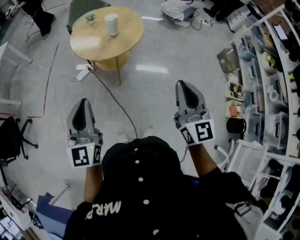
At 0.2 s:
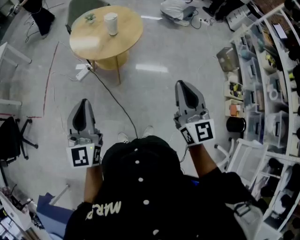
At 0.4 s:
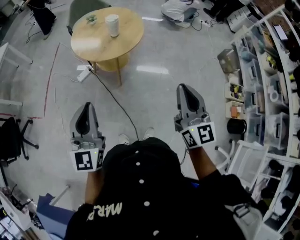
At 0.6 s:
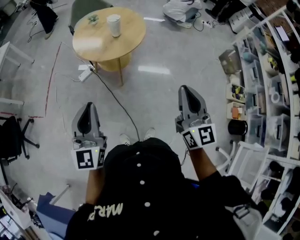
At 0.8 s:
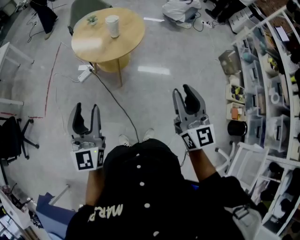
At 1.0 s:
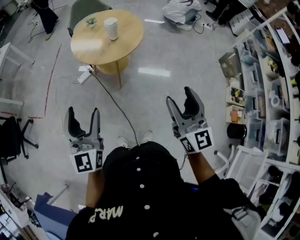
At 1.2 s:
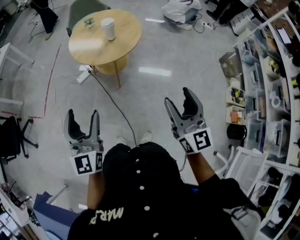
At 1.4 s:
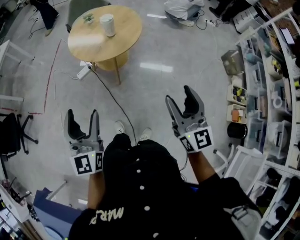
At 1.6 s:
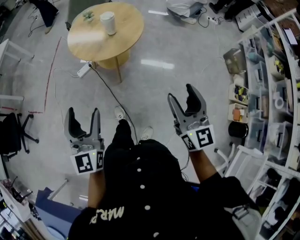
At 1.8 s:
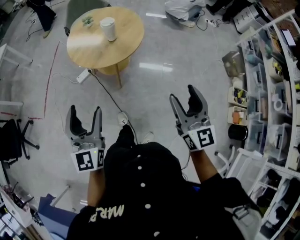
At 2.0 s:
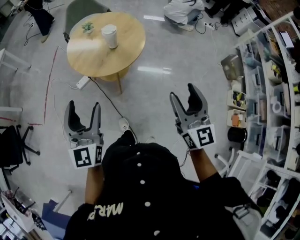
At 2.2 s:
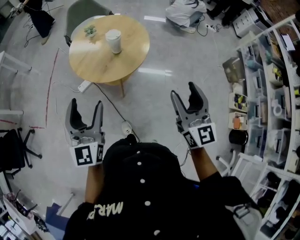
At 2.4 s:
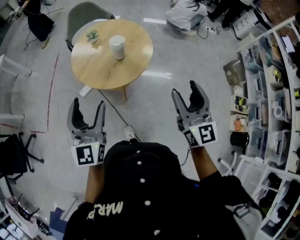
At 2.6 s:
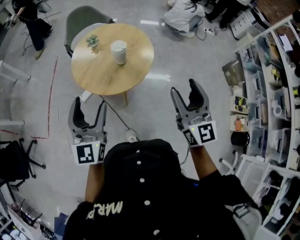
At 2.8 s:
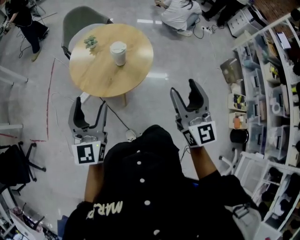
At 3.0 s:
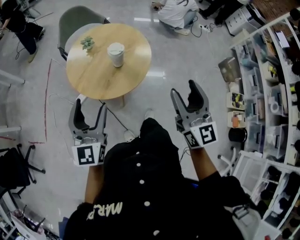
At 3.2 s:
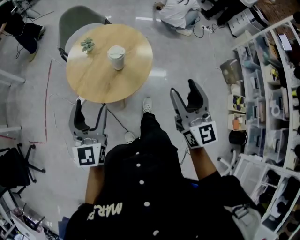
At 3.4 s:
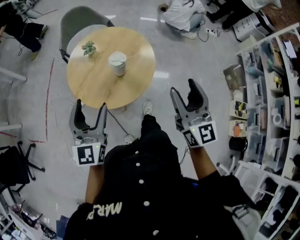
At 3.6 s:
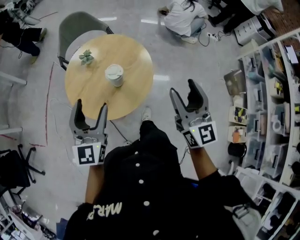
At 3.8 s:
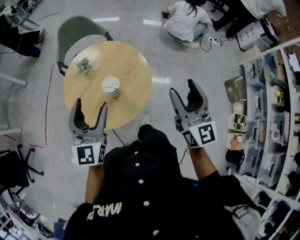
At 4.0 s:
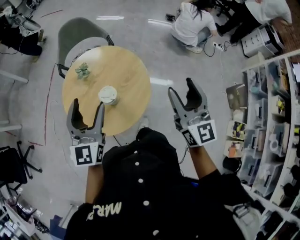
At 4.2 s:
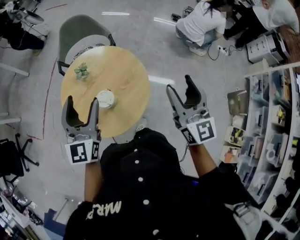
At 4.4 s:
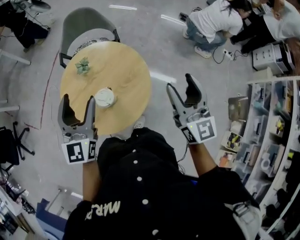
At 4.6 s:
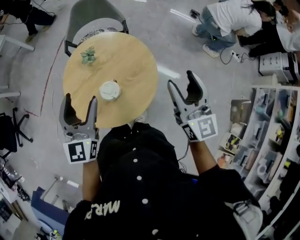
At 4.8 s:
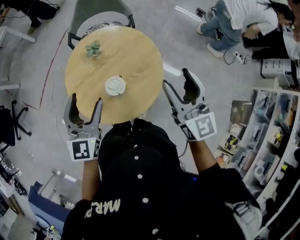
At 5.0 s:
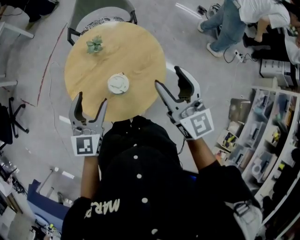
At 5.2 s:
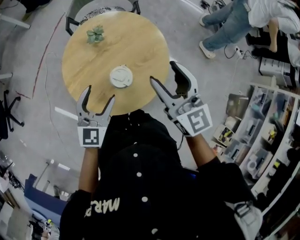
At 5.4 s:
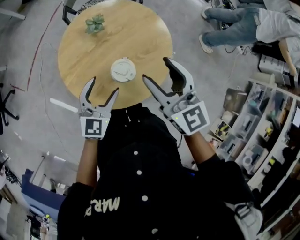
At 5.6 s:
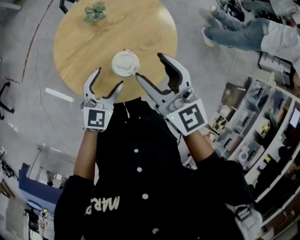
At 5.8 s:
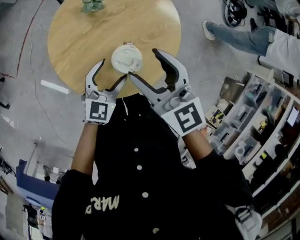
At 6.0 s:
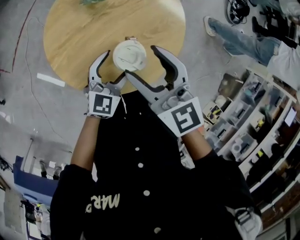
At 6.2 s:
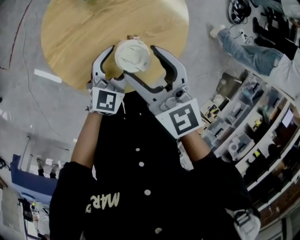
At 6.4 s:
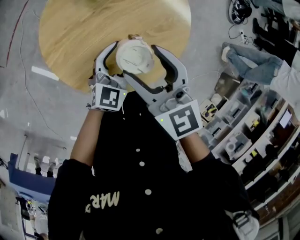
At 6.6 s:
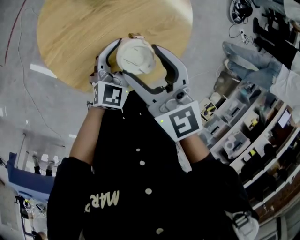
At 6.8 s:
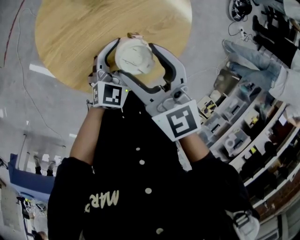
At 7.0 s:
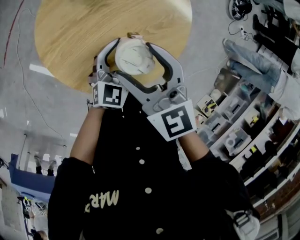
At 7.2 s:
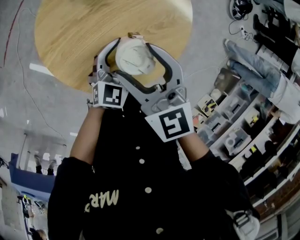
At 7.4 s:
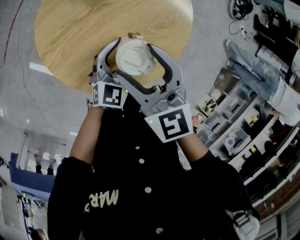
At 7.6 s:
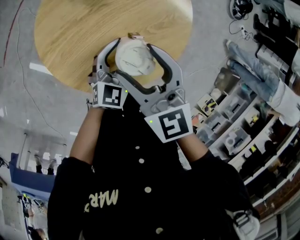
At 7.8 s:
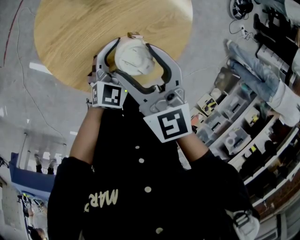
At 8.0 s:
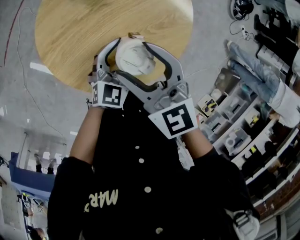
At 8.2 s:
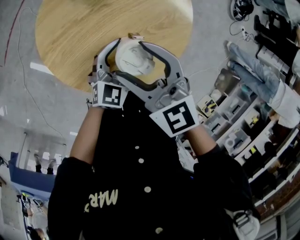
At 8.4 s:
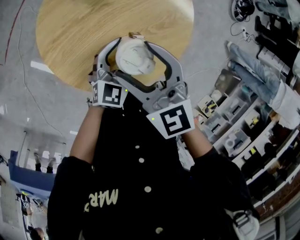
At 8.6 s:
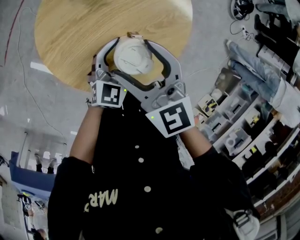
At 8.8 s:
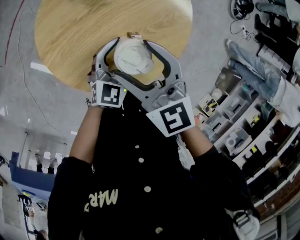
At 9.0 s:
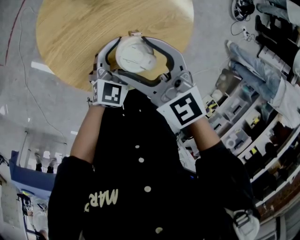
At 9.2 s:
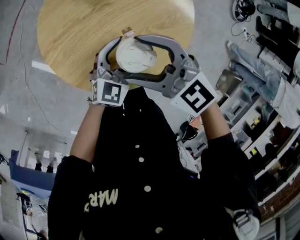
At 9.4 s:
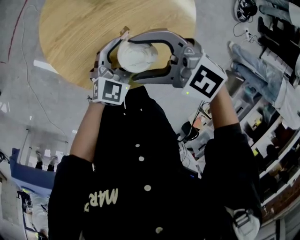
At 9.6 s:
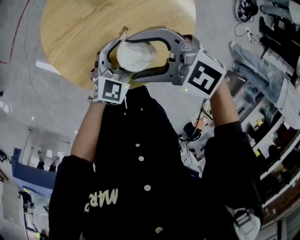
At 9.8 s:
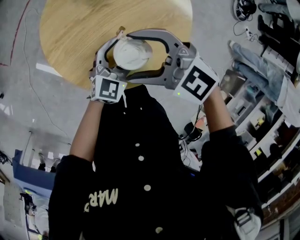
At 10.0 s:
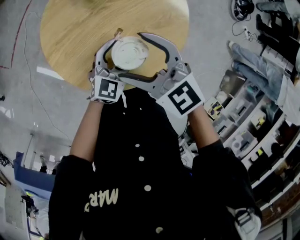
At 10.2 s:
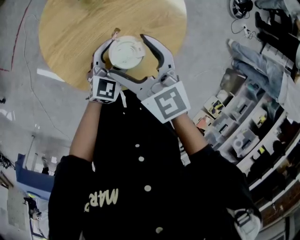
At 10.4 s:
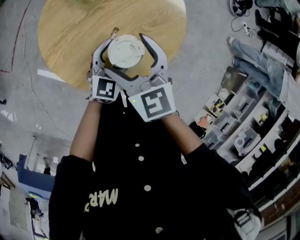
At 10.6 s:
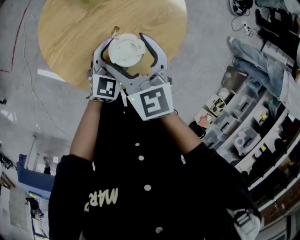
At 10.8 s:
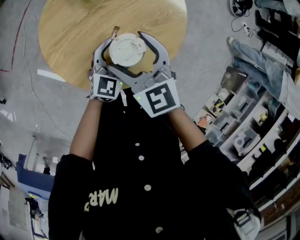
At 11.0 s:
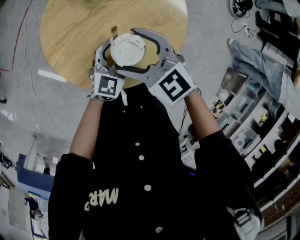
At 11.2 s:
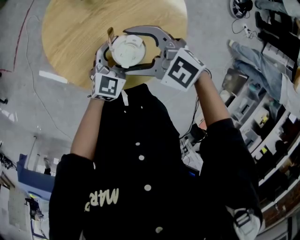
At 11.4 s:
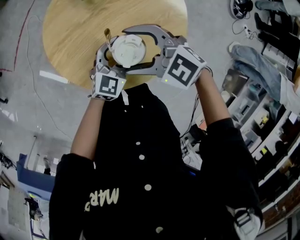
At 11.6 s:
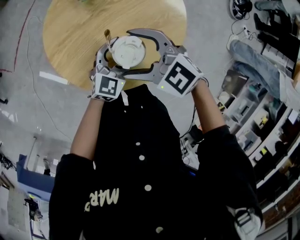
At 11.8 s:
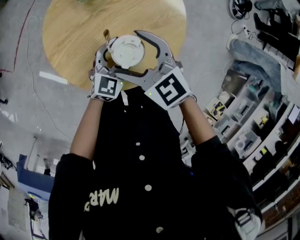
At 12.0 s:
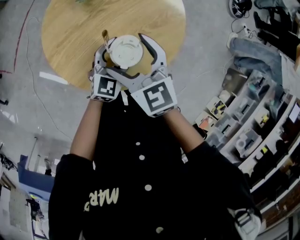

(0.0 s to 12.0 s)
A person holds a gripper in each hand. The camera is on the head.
0.0 s - 1.6 s: The right gripper travels to the right and forward by some 10 cm, and opens its fingers, while the left gripper moves to the right, roughly 5 cm, and opens.
1.6 s - 3.0 s: The left gripper travels forward by about 30 cm; the right gripper travels forward and to the left by approximately 30 cm.
3.0 s - 4.4 s: The grippers both shift forward by roughly 35 cm.
4.4 s - 6.0 s: The left gripper moves downward, about 35 cm, and rotates some 30 degrees. The right gripper goes approximately 35 cm to the left and downward, and turns by about 40 degrees.
6.0 s - 9.0 s: The grippers move only a little.
9.0 s - 10.4 s: The right gripper turns by about 30 degrees.

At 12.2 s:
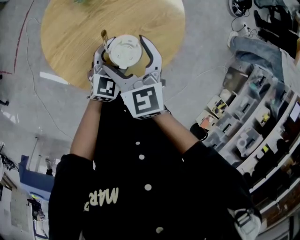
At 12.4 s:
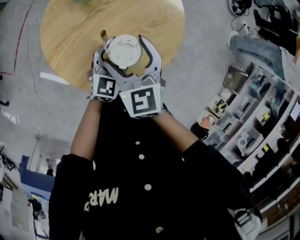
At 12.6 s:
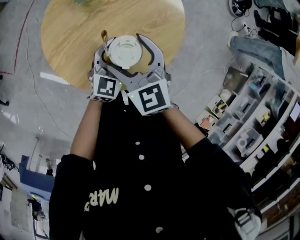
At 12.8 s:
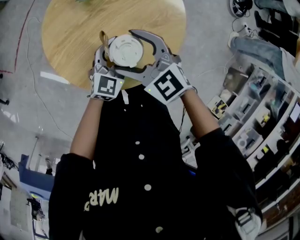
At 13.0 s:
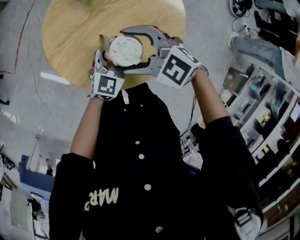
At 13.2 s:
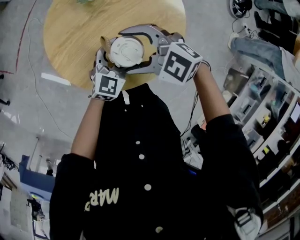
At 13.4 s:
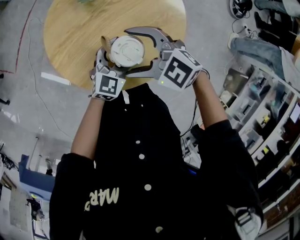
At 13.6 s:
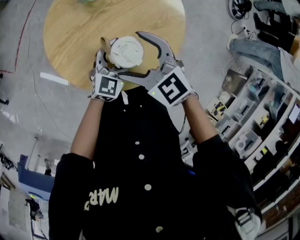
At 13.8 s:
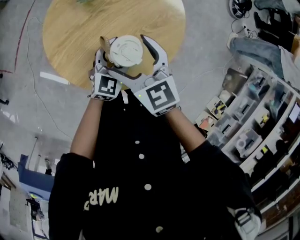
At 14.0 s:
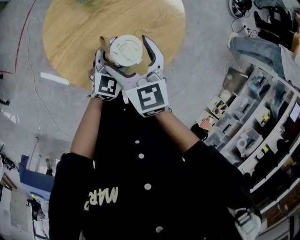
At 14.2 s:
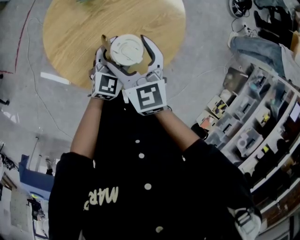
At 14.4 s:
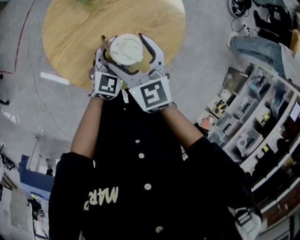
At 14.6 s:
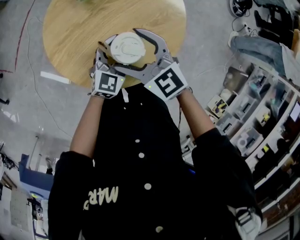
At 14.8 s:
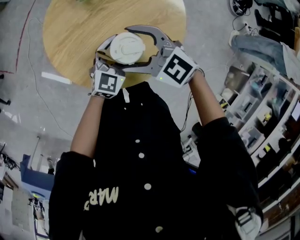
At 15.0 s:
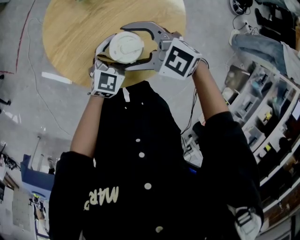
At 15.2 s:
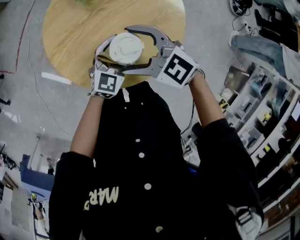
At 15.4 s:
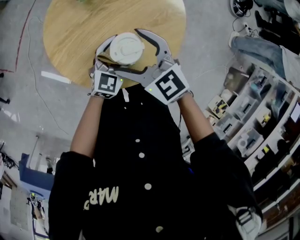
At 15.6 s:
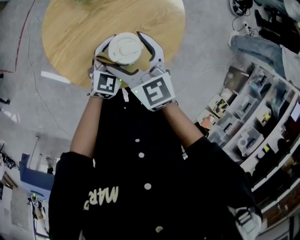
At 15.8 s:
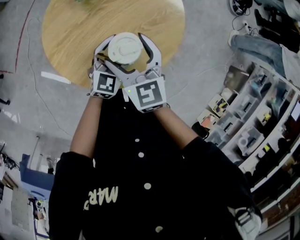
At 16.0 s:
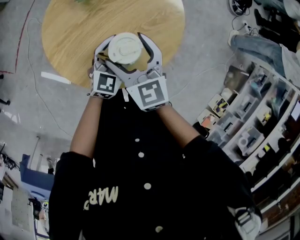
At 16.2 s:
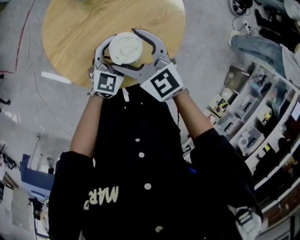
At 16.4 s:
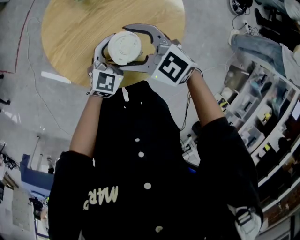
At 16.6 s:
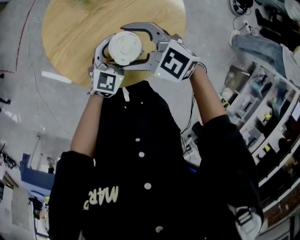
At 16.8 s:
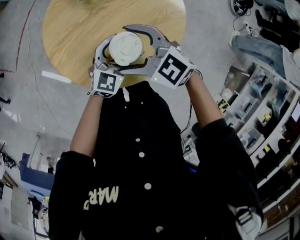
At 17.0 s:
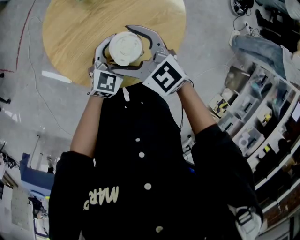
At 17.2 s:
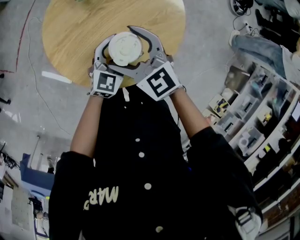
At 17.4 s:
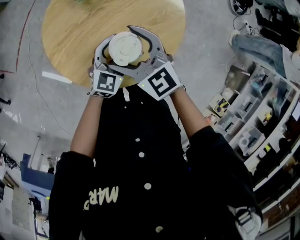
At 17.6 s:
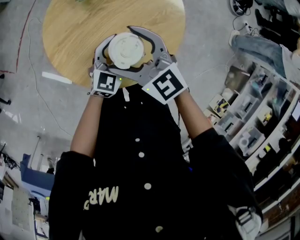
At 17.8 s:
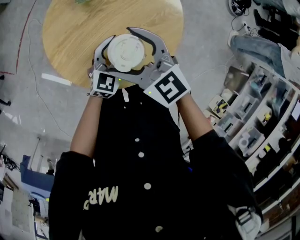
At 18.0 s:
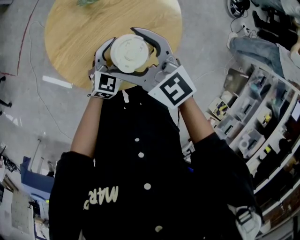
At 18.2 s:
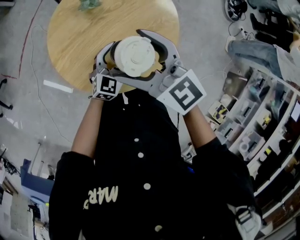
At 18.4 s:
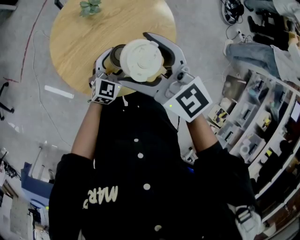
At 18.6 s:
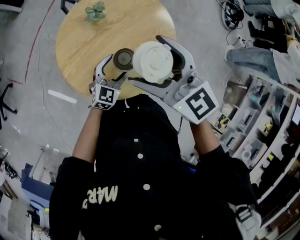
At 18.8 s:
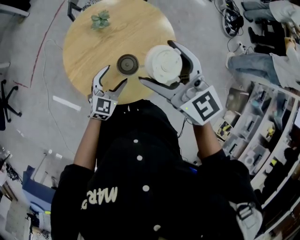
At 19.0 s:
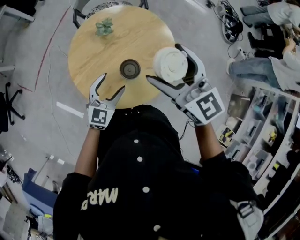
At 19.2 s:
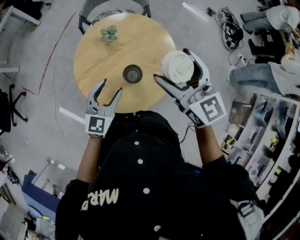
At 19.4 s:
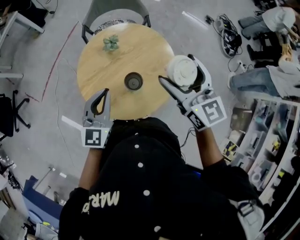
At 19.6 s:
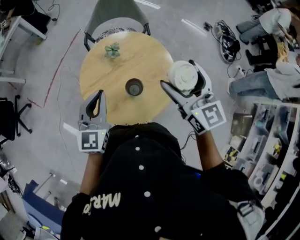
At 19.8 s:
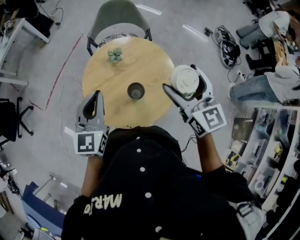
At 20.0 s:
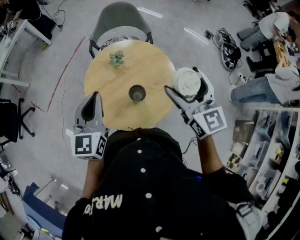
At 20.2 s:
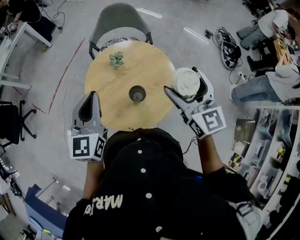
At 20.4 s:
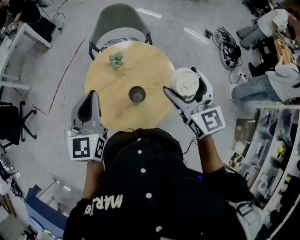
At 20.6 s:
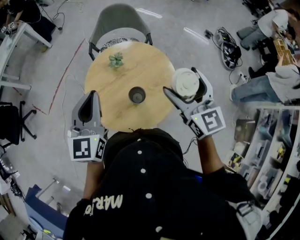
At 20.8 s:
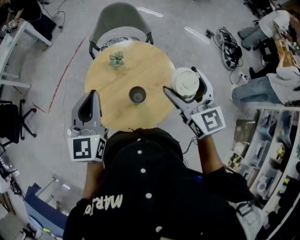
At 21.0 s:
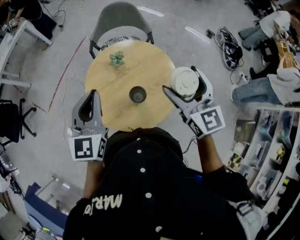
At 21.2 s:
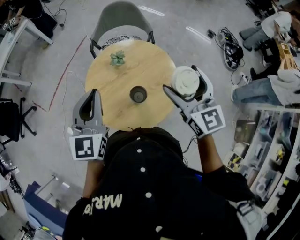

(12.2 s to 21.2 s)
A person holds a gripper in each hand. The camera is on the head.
13.8 s - 15.2 s: The right gripper rotates about 40 degrees.
16.6 s - 18.2 s: The right gripper moves upward, about 10 cm, and rotates about 30 degrees.
18.2 s - 19.8 s: The left gripper moves upward and to the left, some 35 cm, turns by roughly 30 degrees, and closes up. Meanwhile the right gripper is displaced upward and to the right by roughly 20 cm, and changes its angle by about 30 degrees.
19.8 s - 21.2 s: The grippers make only small movements.

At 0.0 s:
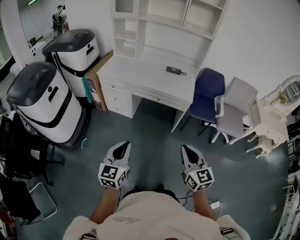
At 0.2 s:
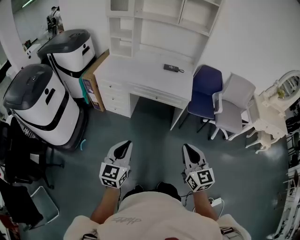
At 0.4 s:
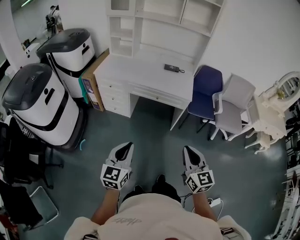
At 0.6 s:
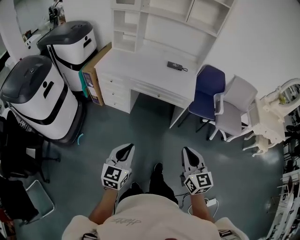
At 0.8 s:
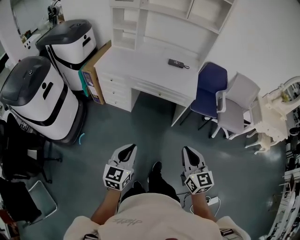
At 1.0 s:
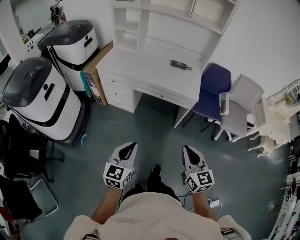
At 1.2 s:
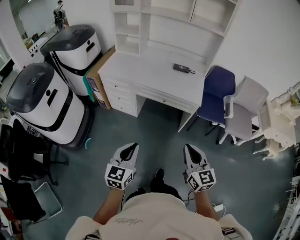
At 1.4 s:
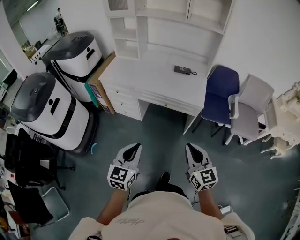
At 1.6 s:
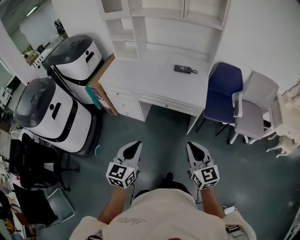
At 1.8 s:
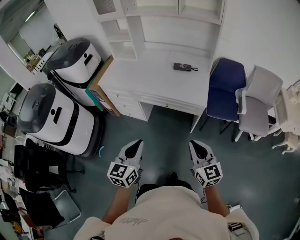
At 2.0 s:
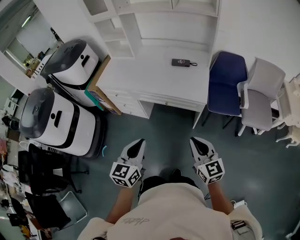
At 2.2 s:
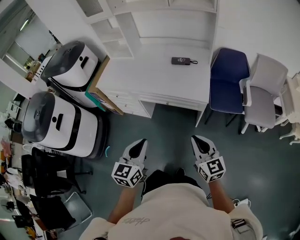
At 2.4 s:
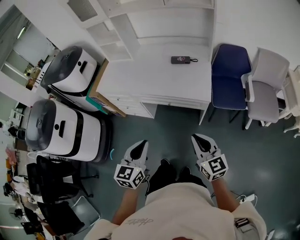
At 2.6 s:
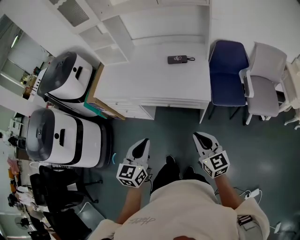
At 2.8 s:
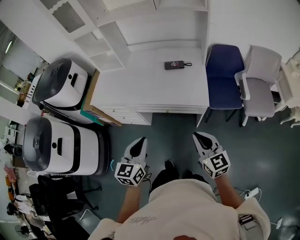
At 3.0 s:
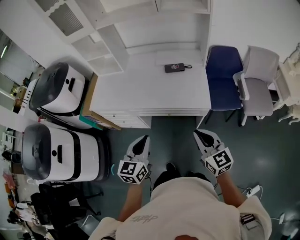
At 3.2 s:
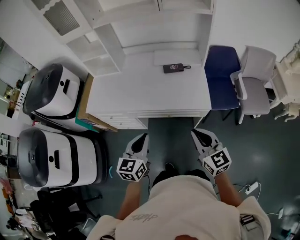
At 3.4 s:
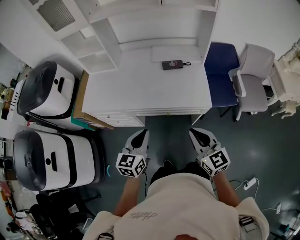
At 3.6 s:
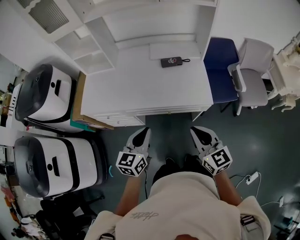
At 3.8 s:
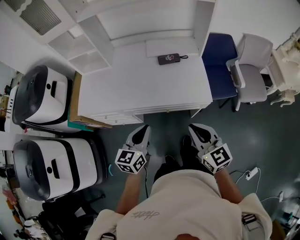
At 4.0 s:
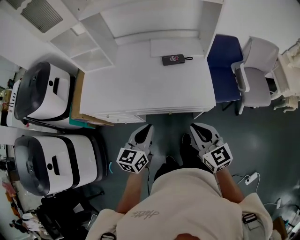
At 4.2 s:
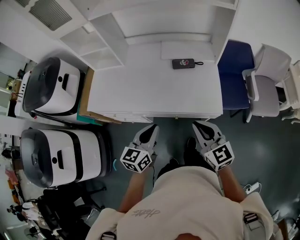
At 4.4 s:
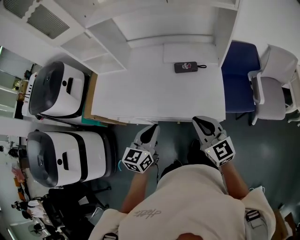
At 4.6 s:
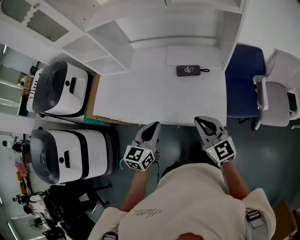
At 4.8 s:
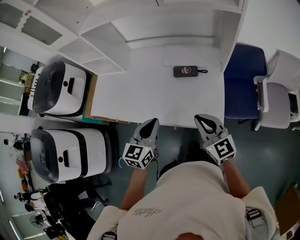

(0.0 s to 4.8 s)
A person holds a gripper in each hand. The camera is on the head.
0.0 s - 1.6 s: The two grippers go about 20 cm forward.
1.6 s - 3.2 s: Both grippers travel together forward, some 25 cm.
3.2 s - 4.8 s: The grippers both shift forward by about 25 cm.
